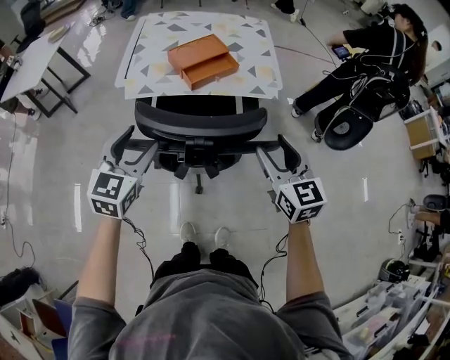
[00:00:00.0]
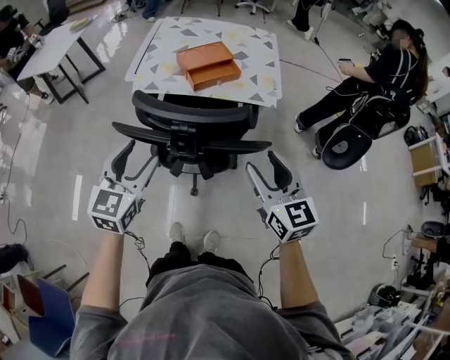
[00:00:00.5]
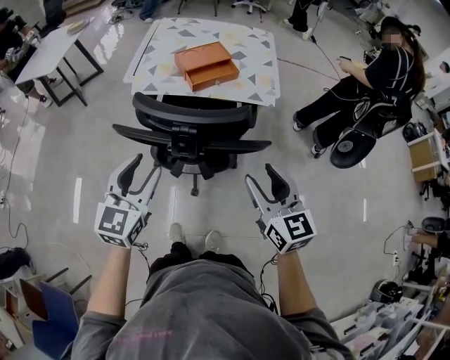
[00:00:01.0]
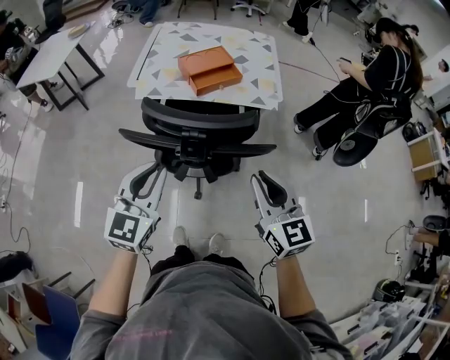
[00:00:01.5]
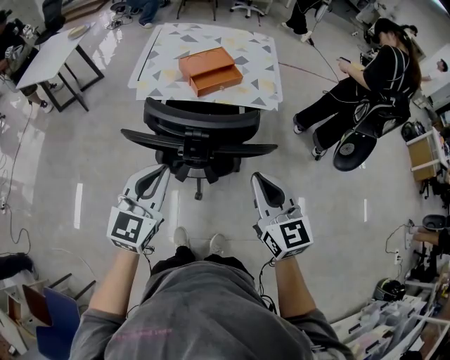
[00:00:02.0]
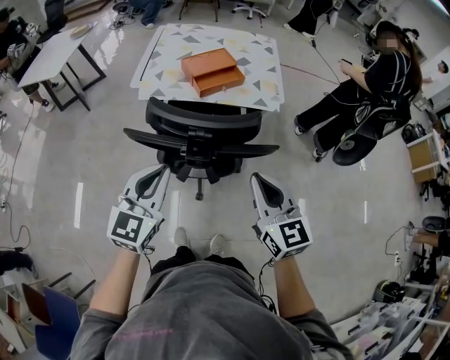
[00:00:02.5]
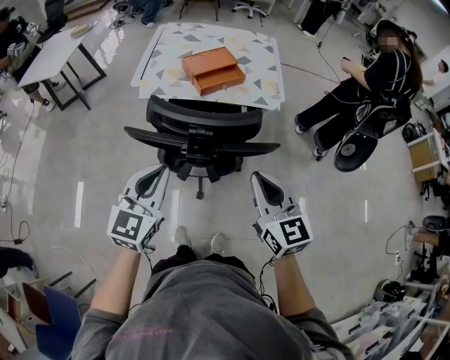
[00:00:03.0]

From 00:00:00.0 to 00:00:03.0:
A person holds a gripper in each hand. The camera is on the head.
From 00:00:00.0 to 00:00:01.5: The left gripper shifts some 15 cm backward and to the right, and closes; the right gripper is displaced backward by approximately 10 cm, and closes.
From 00:00:01.5 to 00:00:03.0: The grippers make only small movements.

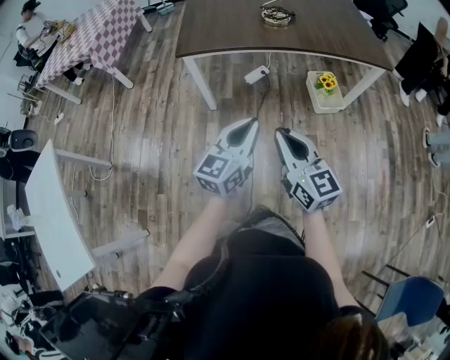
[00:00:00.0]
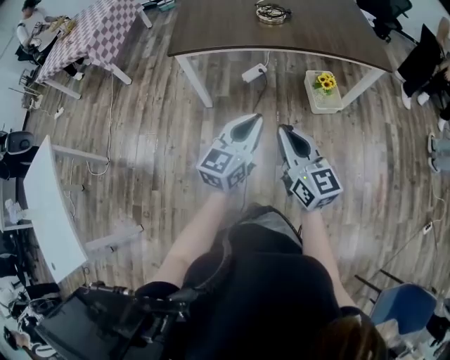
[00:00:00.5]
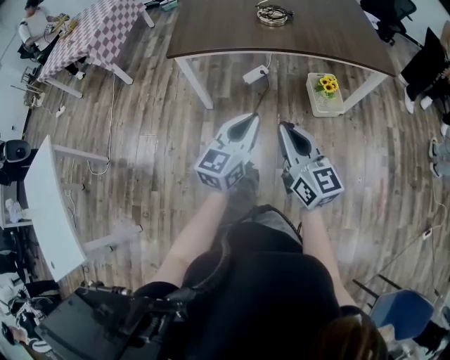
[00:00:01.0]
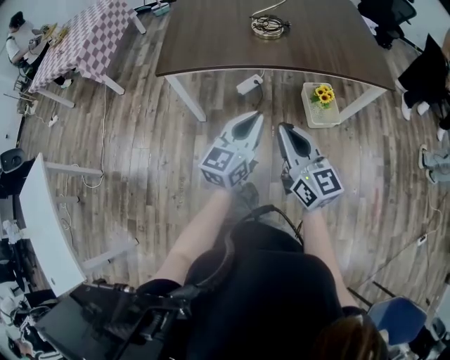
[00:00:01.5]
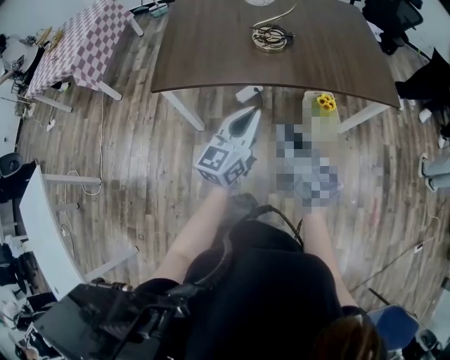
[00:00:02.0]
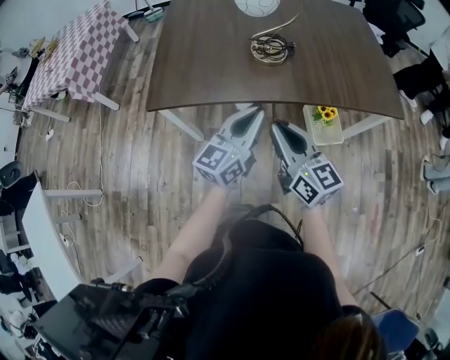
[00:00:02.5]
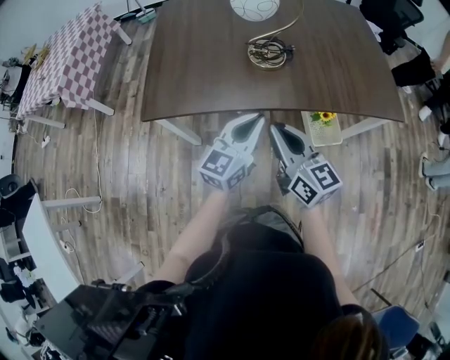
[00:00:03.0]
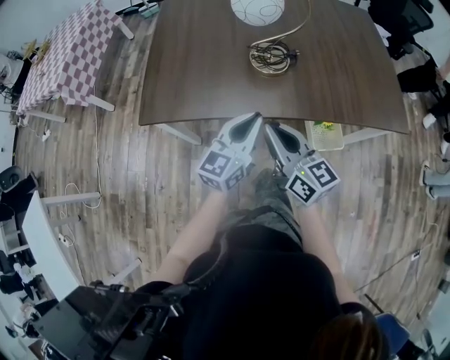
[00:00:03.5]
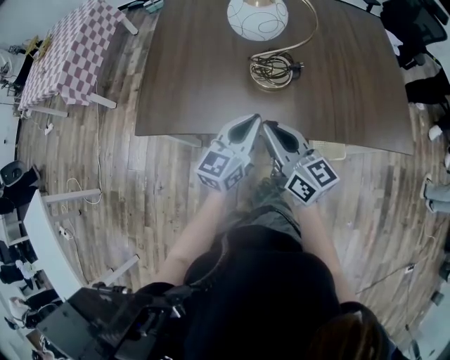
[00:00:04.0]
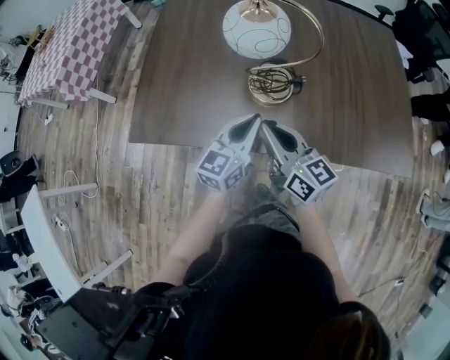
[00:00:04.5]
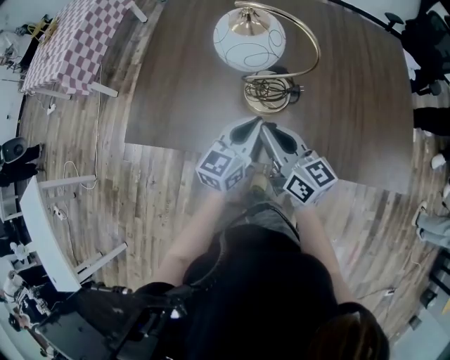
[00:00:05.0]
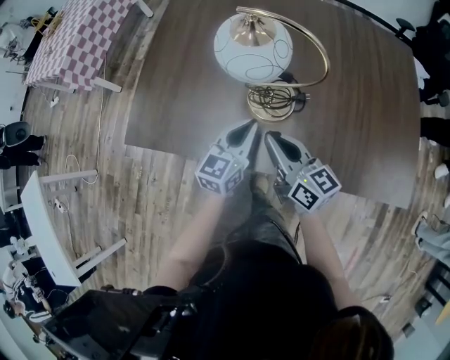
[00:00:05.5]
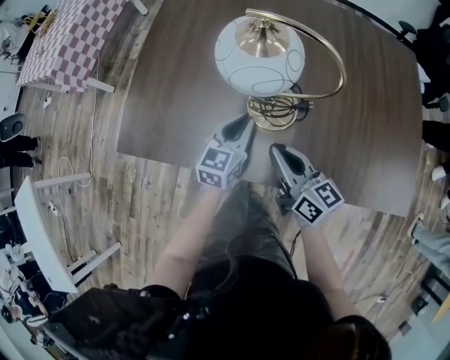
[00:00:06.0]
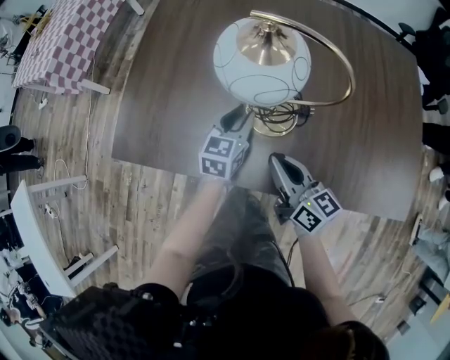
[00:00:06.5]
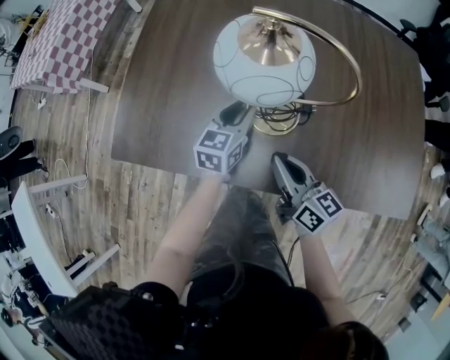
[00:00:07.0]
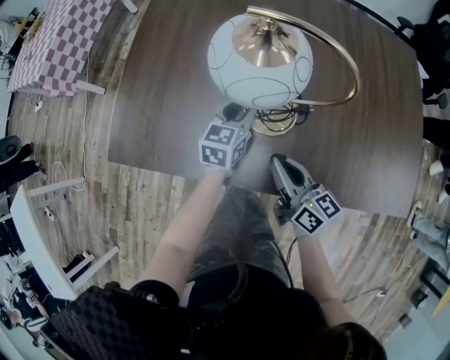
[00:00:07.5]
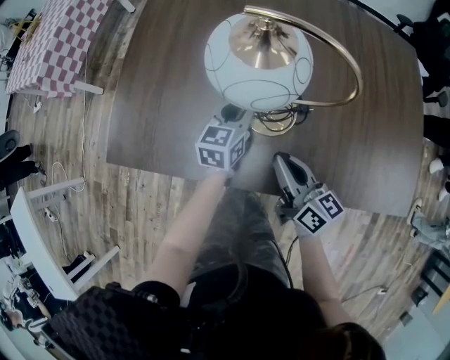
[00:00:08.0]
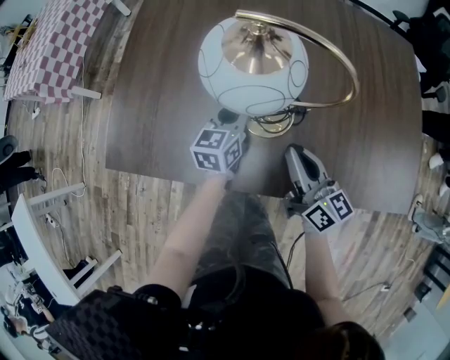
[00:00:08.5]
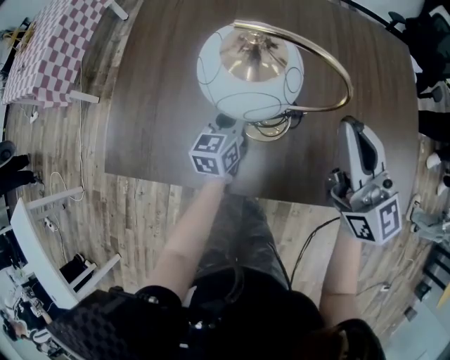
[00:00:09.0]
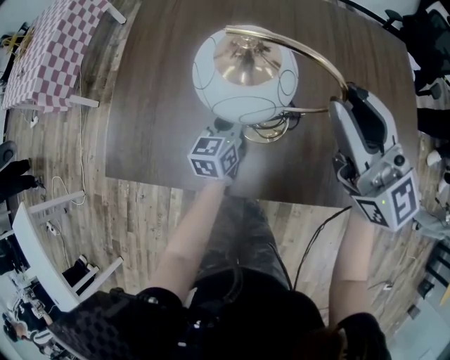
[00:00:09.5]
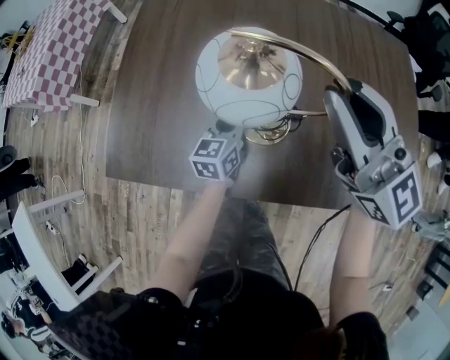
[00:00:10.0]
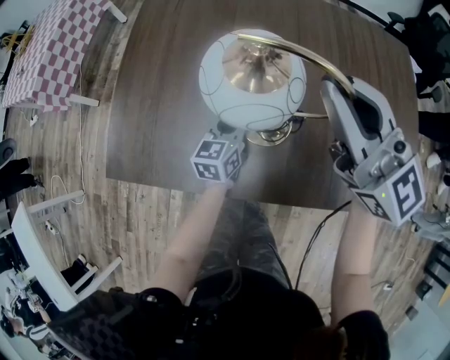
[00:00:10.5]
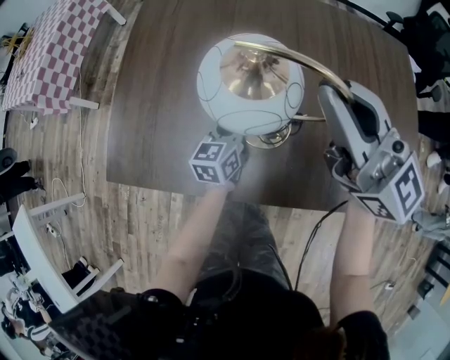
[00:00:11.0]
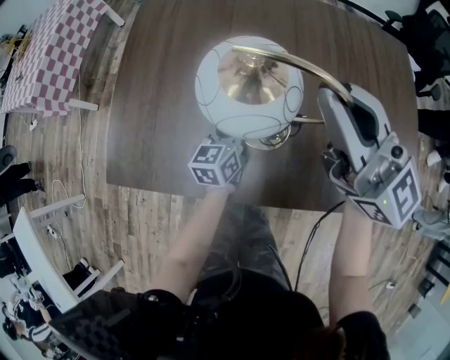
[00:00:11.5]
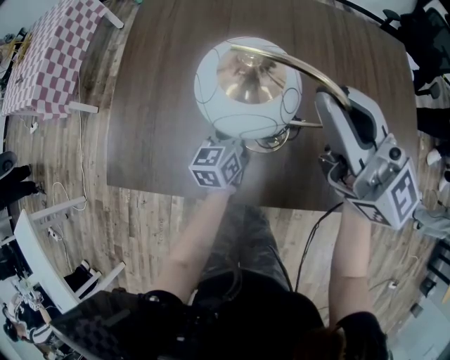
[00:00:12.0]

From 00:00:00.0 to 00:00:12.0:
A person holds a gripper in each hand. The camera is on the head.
From 00:00:00.0 to 00:00:02.0: Both grippers move forward, roughly 25 cm.
From 00:00:02.0 to 00:00:04.0: Both grippers move forward, approximately 20 cm.
From 00:00:04.0 to 00:00:06.0: The left gripper is displaced forward and downward by about 15 cm. Meanwhile the right gripper moves forward, downward and to the right, approximately 15 cm.
From 00:00:06.0 to 00:00:08.0: The left gripper heads forward, covering about 5 cm.
From 00:00:08.0 to 00:00:10.0: The right gripper shifts about 25 cm upward and forward, and rotates around the line of its fingers by about 50 degrees, counterclockwise from behind.
From 00:00:10.0 to 00:00:12.0: There are only small adjustments of the grippers.

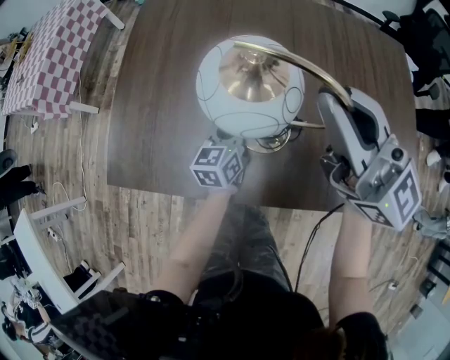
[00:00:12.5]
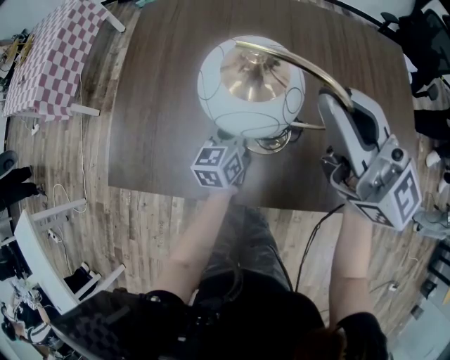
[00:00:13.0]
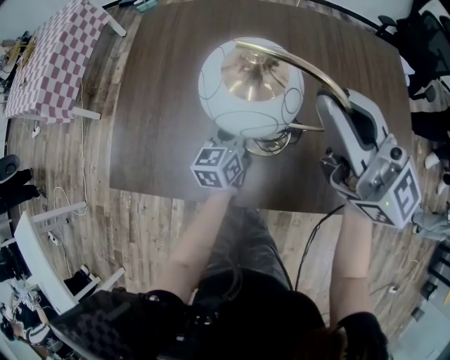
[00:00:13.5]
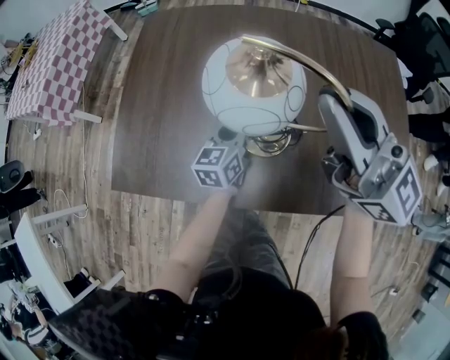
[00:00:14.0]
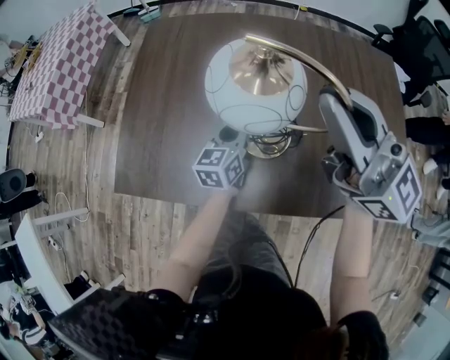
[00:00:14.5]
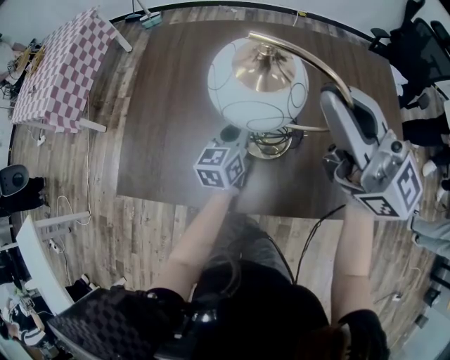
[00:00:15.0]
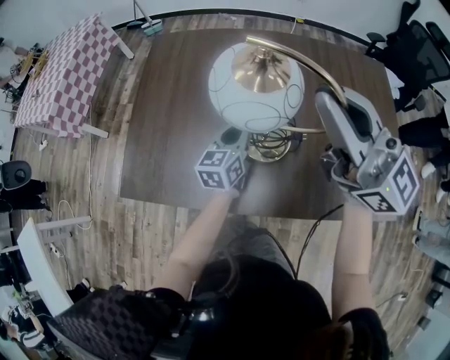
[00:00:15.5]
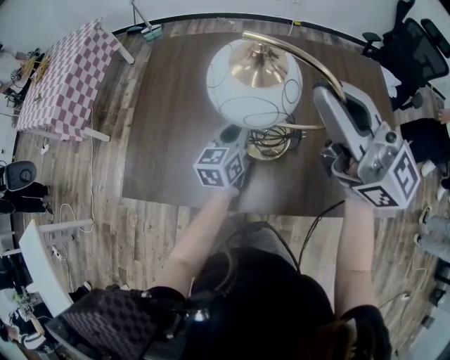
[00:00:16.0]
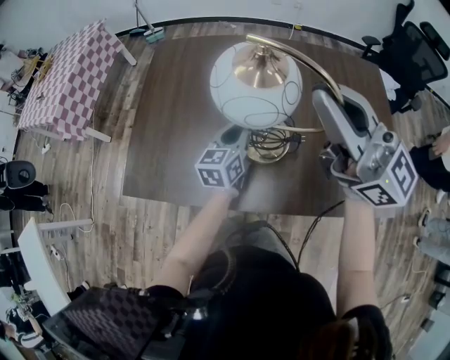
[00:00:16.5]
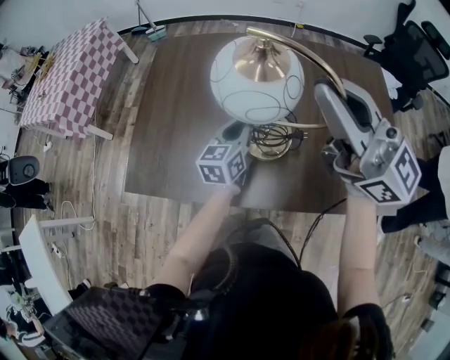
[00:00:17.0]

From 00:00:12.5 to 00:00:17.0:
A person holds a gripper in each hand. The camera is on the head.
From 00:00:12.5 to 00:00:14.5: The left gripper shifts approximately 5 cm upward. The right gripper shifts by approximately 5 cm.
From 00:00:14.5 to 00:00:17.0: Both grippers travel together upward, roughly 5 cm.

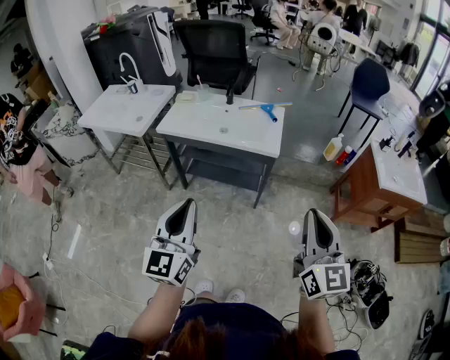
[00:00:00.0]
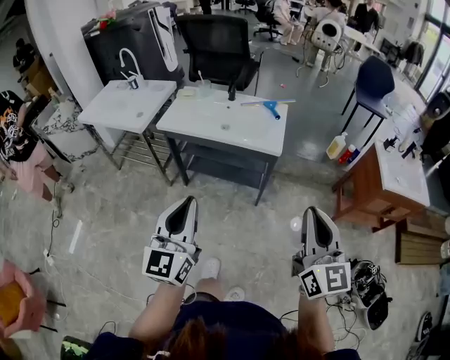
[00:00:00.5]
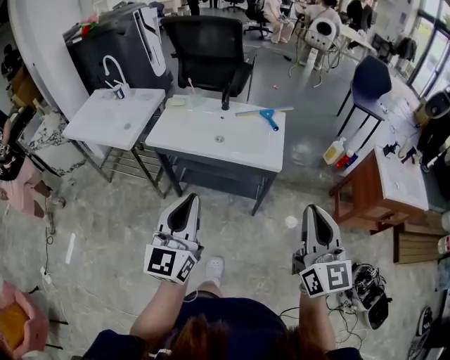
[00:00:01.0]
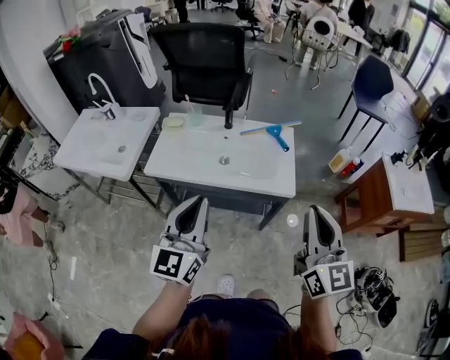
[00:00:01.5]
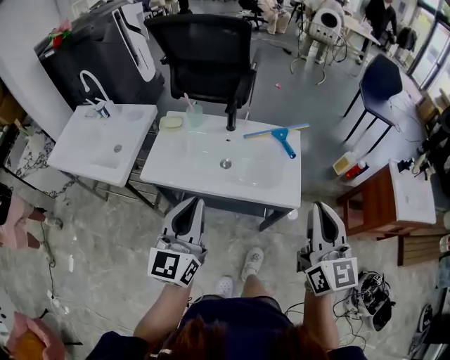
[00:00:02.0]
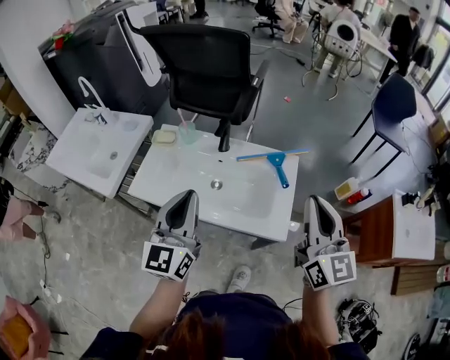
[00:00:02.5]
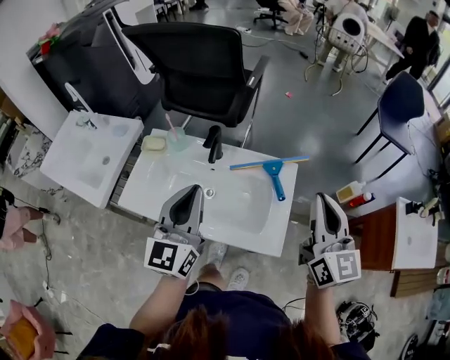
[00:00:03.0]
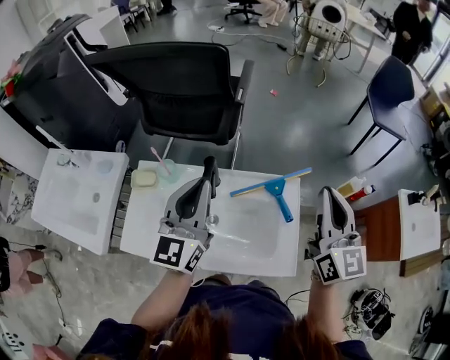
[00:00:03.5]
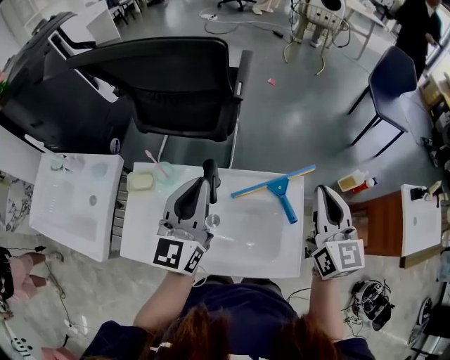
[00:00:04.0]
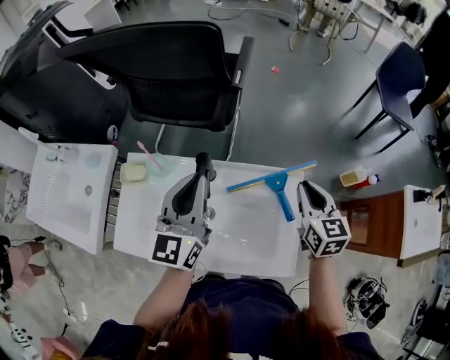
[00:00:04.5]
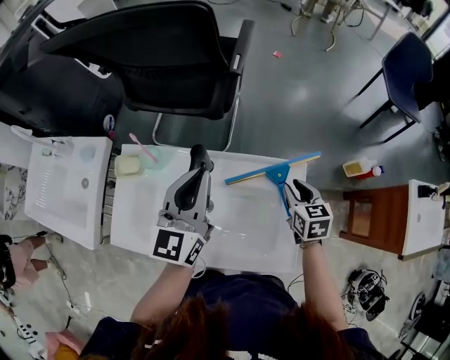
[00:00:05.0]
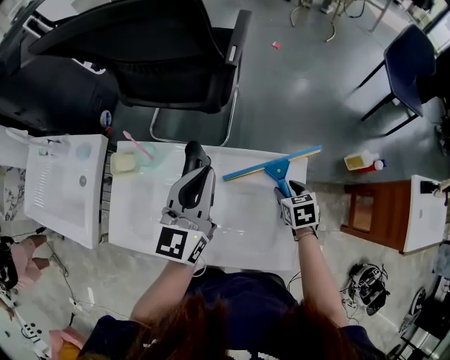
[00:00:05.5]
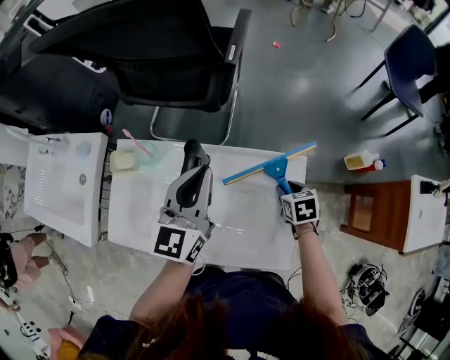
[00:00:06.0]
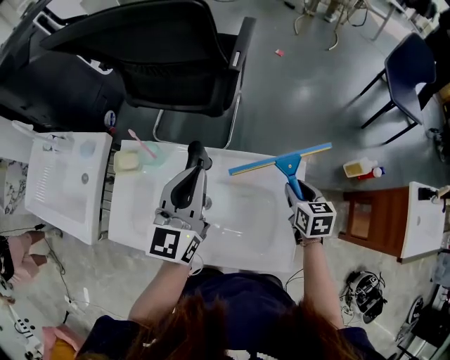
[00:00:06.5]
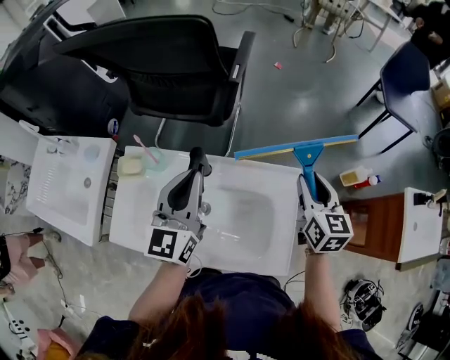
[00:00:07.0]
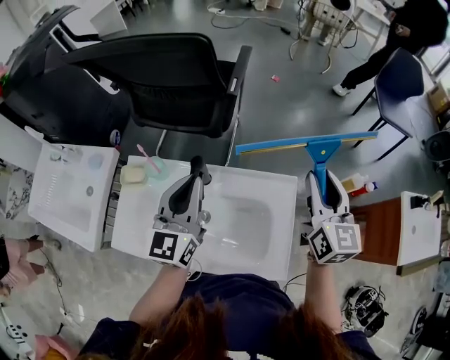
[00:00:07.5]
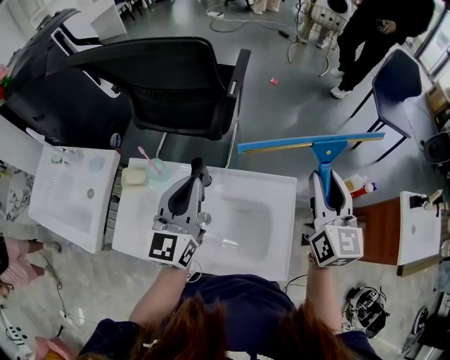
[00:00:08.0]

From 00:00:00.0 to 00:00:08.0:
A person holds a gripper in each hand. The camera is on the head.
From 00:00:00.0 to 00:00:02.0: The two grippers travel together, forward, about 40 cm.
From 00:00:02.0 to 00:00:04.0: The pair of grippers is taken forward, approximately 40 cm.
From 00:00:04.0 to 00:00:06.0: The left gripper moves downward and to the right, some 10 cm. Meanwhile the right gripper shifts roughly 35 cm downward, angles its fingers downward, by some 50 degrees, and opens.
From 00:00:06.0 to 00:00:08.0: The right gripper heads upward, covering roughly 35 cm, and angles its fingers upward, by roughly 60 degrees. The left gripper shifts roughly 5 cm upward.
